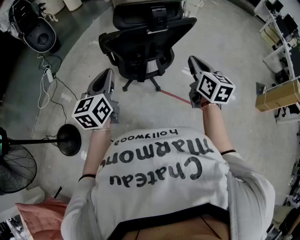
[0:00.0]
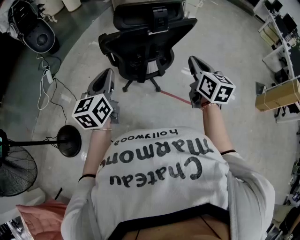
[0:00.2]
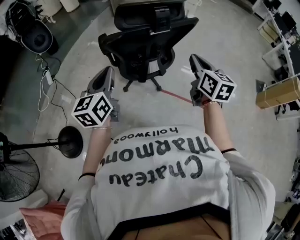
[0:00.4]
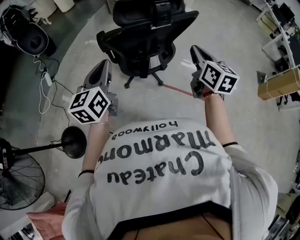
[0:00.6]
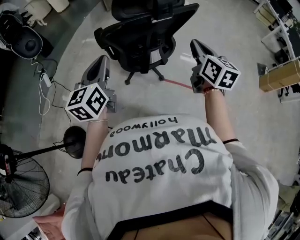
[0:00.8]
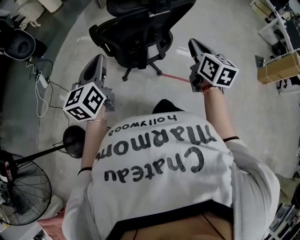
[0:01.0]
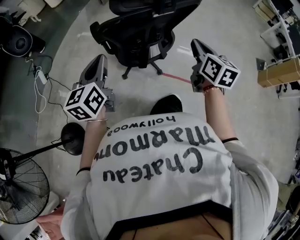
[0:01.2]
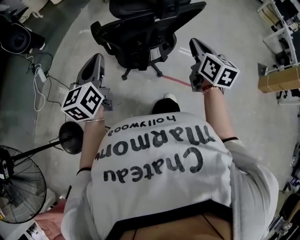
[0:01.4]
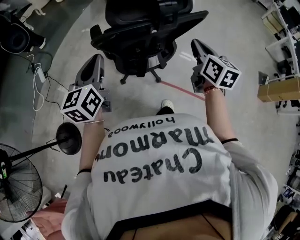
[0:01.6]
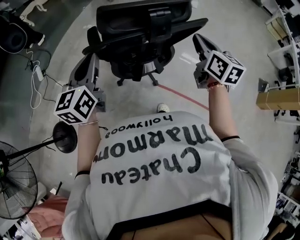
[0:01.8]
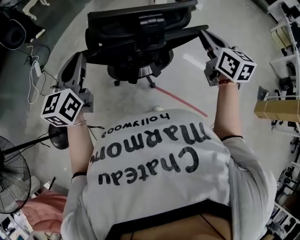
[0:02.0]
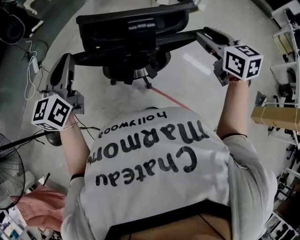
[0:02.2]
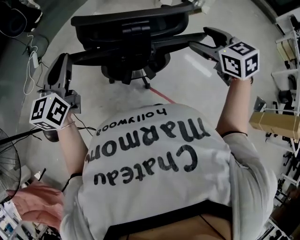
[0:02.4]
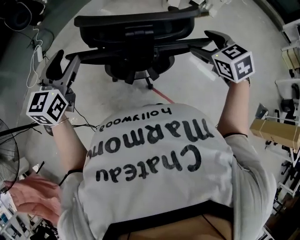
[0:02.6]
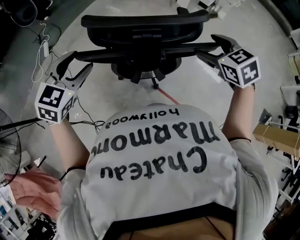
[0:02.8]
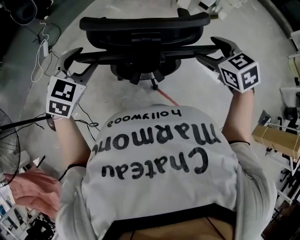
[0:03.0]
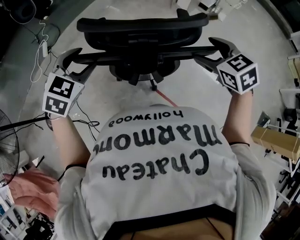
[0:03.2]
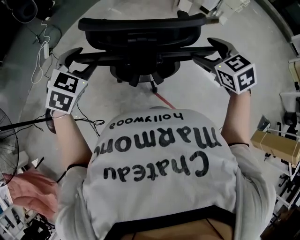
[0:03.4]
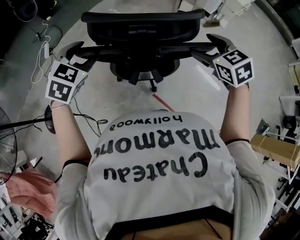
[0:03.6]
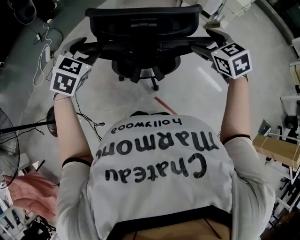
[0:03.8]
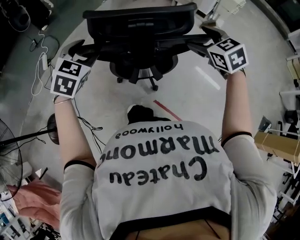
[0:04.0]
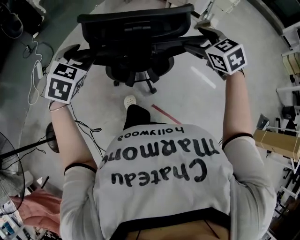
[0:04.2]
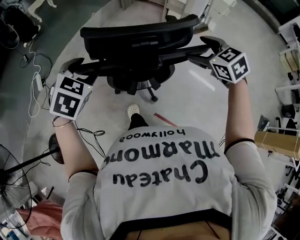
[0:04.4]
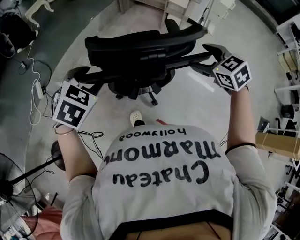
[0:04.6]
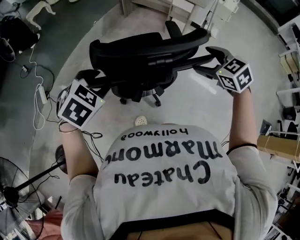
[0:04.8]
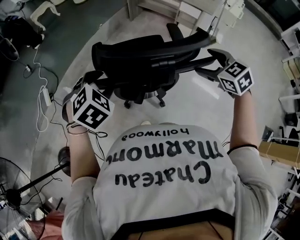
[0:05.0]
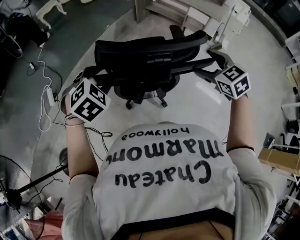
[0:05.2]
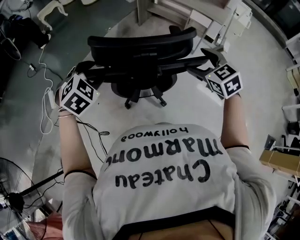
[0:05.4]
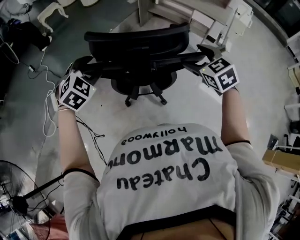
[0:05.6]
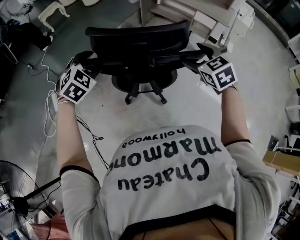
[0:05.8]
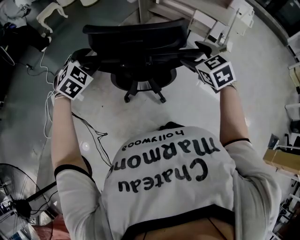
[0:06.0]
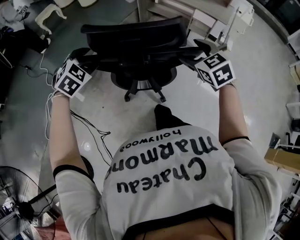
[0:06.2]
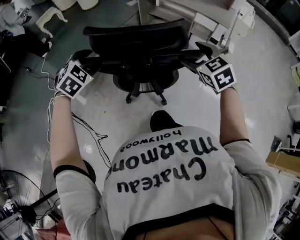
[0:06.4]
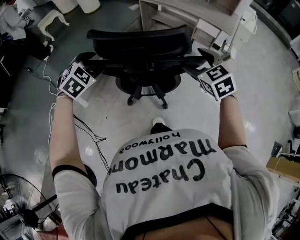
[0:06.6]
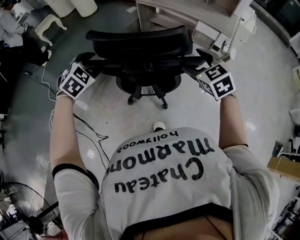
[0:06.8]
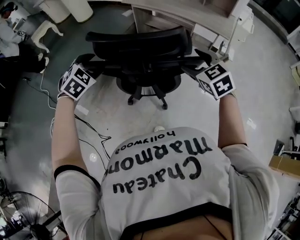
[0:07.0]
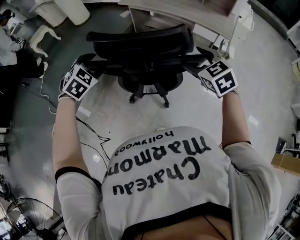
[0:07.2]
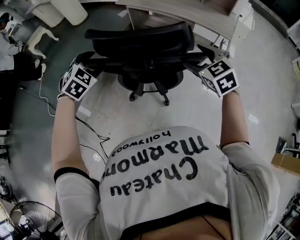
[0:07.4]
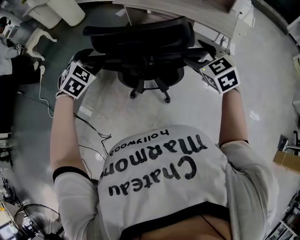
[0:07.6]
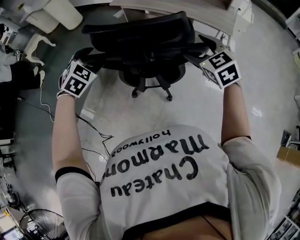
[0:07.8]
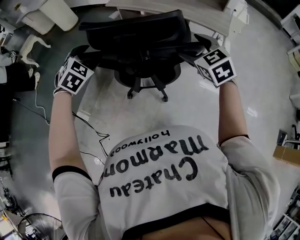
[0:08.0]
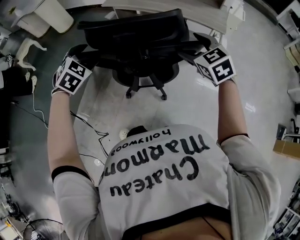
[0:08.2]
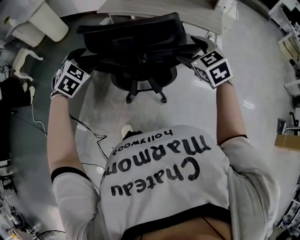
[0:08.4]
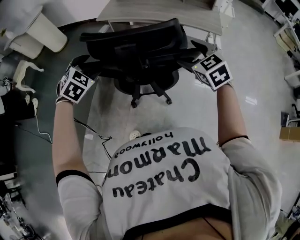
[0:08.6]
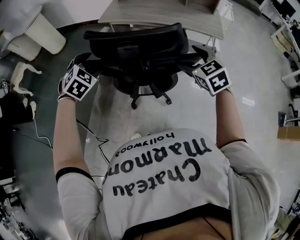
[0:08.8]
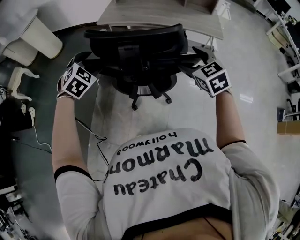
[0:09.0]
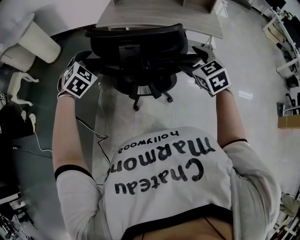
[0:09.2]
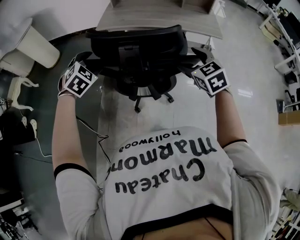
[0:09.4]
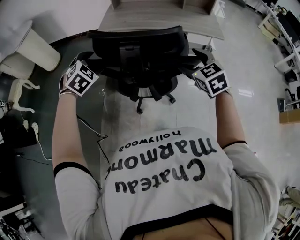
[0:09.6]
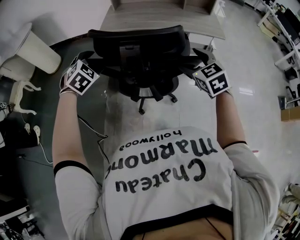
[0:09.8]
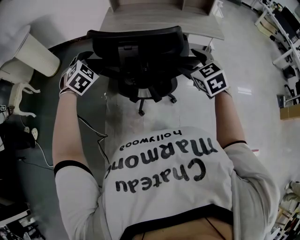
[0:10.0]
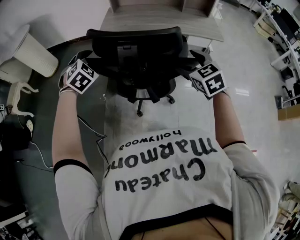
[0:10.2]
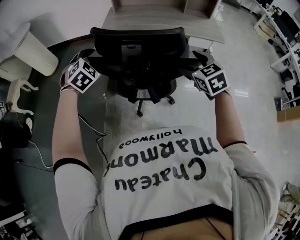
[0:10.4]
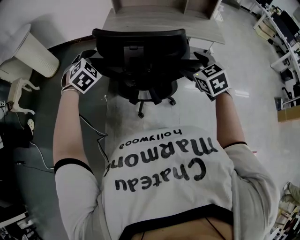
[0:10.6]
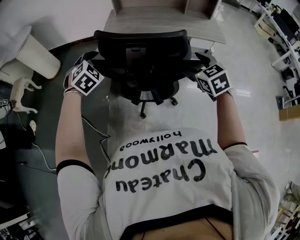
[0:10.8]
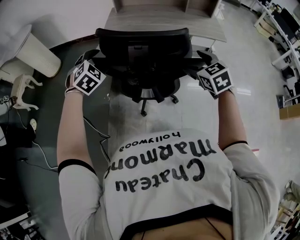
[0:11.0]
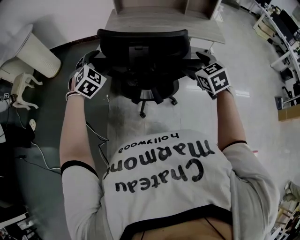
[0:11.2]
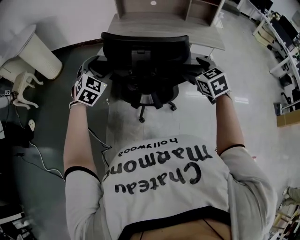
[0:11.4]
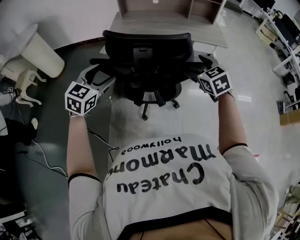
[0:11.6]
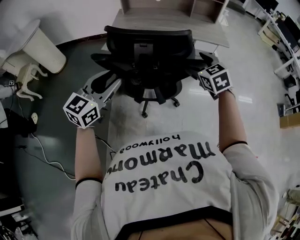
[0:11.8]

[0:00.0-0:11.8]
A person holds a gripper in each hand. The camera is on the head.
0:00.0 to 0:01.4: The right gripper heads forward, covering some 5 cm, while the left gripper moves forward and to the left, about 10 cm.
0:01.4 to 0:03.0: The two grippers go approximately 20 cm forward and to the right. The left gripper rolls clockwise, seen from behind, by roughly 40 degrees, and opens up. Meanwhile the right gripper rotates roughly 60 degrees, and opens up.
0:03.0 to 0:04.4: Both grippers travel together forward, some 15 cm.
0:04.4 to 0:06.0: Both grippers move forward and to the left, some 35 cm. The left gripper swivels approximately 20 degrees.
0:06.0 to 0:07.4: The grippers move only a little.
0:07.4 to 0:08.8: The left gripper travels forward by approximately 10 cm. The right gripper is displaced to the left by approximately 5 cm.
0:08.8 to 0:10.4: The left gripper travels forward and to the left by about 20 cm; the right gripper travels to the left and forward by roughly 15 cm.
0:10.4 to 0:11.8: The left gripper travels backward and upward by about 15 cm, tips its fingers upward by about 30 degrees, and closes.

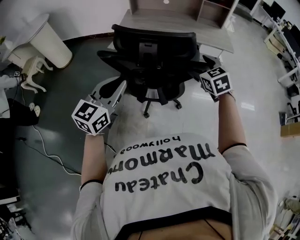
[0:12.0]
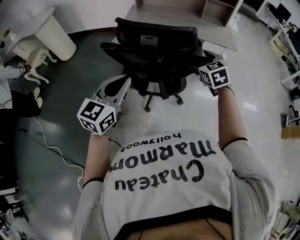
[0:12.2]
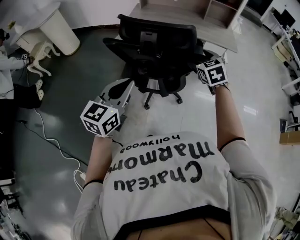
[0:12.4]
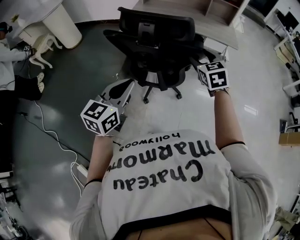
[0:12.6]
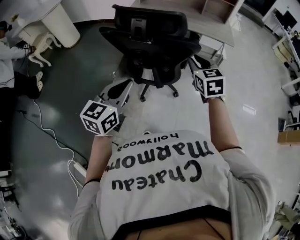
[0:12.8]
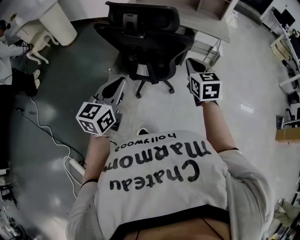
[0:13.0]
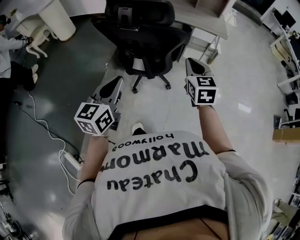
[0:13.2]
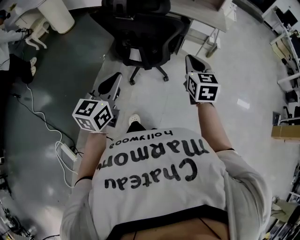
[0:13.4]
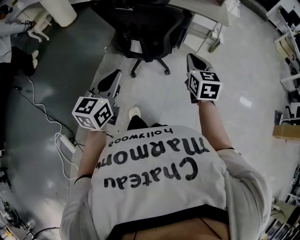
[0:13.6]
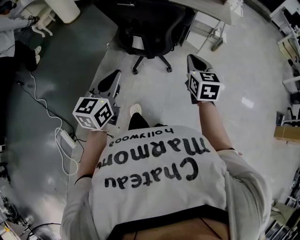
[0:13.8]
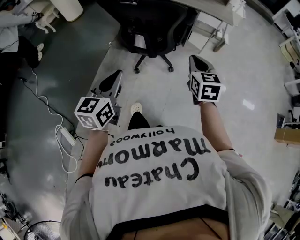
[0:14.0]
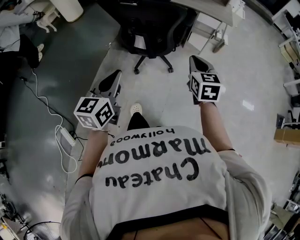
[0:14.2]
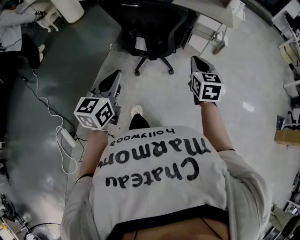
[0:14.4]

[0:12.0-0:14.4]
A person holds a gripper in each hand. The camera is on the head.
0:12.0 to 0:13.2: Both grippers travel together backward and to the right, approximately 20 cm. The right gripper closes up. Meanwhile the left gripper turns by roughly 20 degrees.
0:13.2 to 0:14.4: The left gripper shifts about 10 cm backward; the right gripper goes some 10 cm backward and to the right.

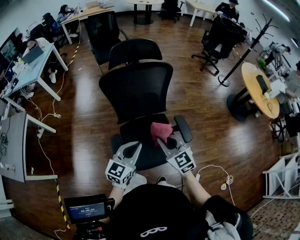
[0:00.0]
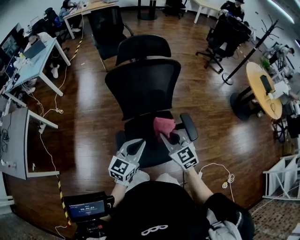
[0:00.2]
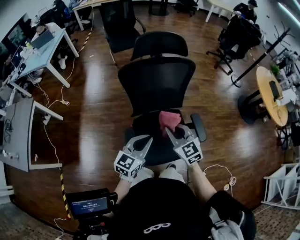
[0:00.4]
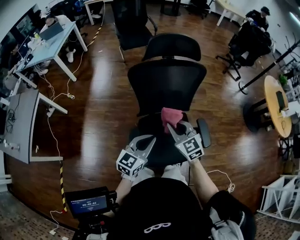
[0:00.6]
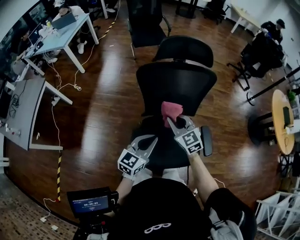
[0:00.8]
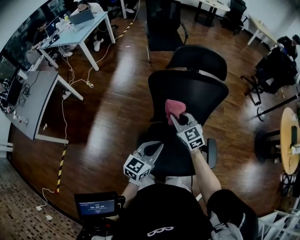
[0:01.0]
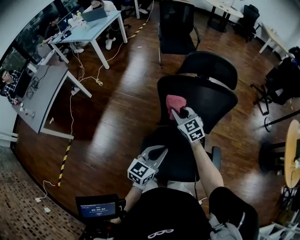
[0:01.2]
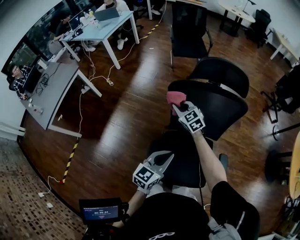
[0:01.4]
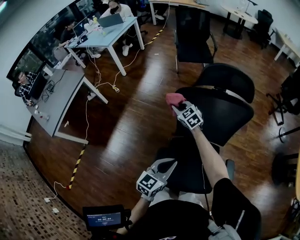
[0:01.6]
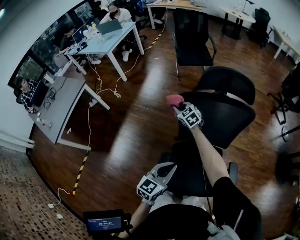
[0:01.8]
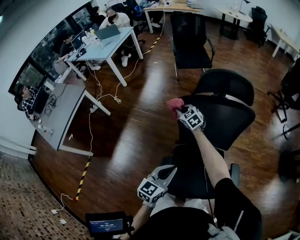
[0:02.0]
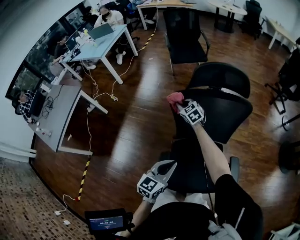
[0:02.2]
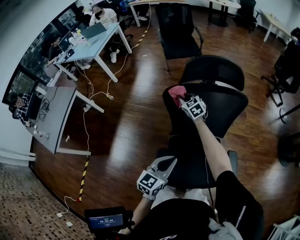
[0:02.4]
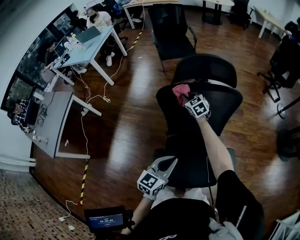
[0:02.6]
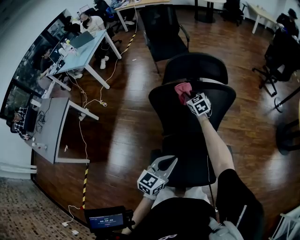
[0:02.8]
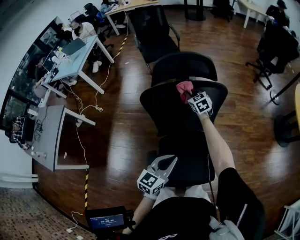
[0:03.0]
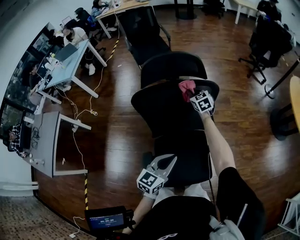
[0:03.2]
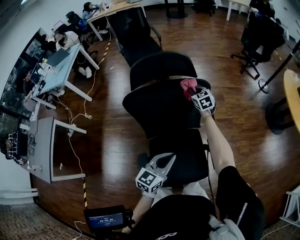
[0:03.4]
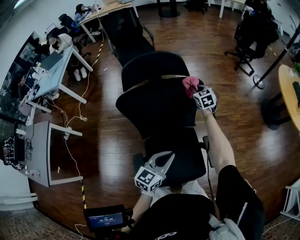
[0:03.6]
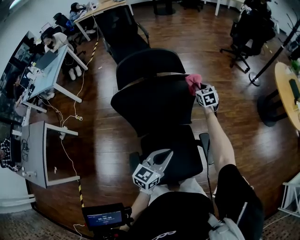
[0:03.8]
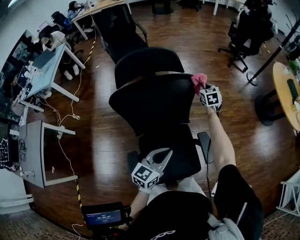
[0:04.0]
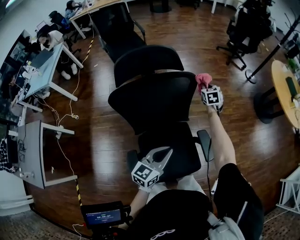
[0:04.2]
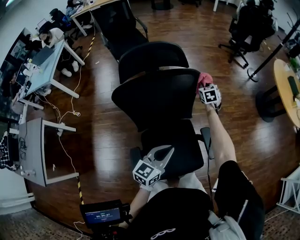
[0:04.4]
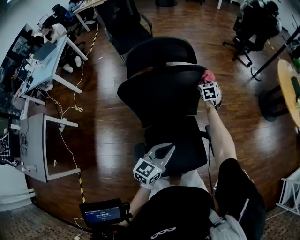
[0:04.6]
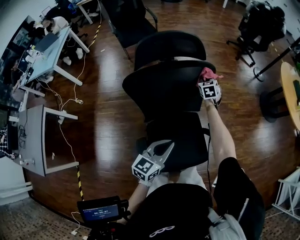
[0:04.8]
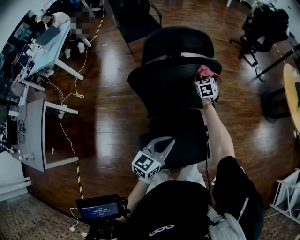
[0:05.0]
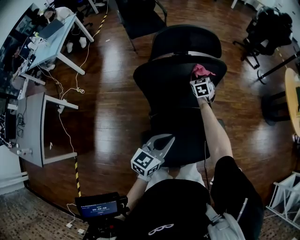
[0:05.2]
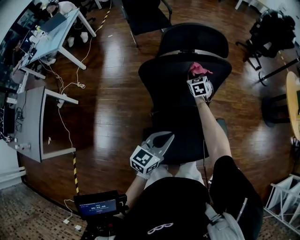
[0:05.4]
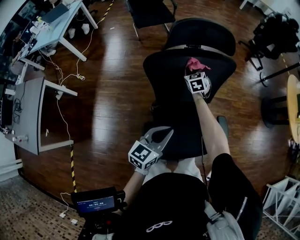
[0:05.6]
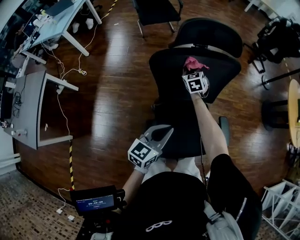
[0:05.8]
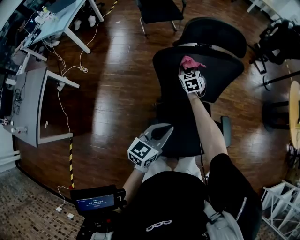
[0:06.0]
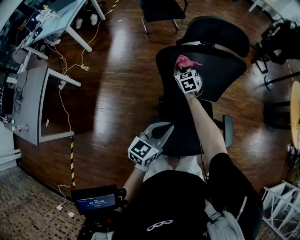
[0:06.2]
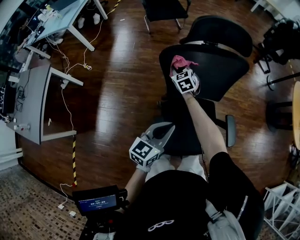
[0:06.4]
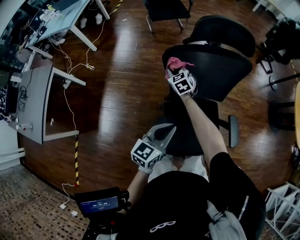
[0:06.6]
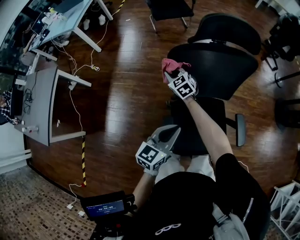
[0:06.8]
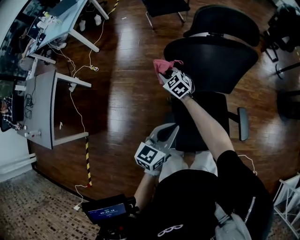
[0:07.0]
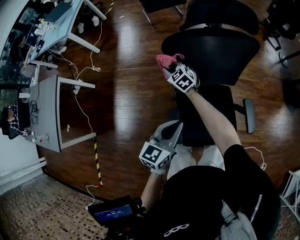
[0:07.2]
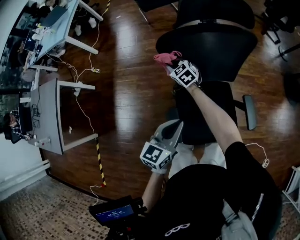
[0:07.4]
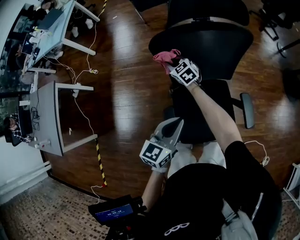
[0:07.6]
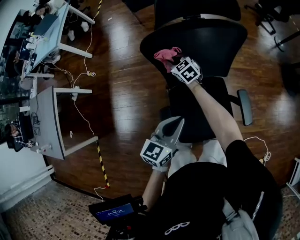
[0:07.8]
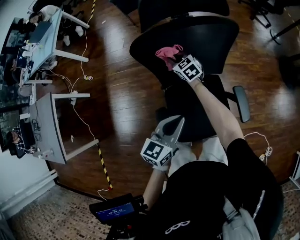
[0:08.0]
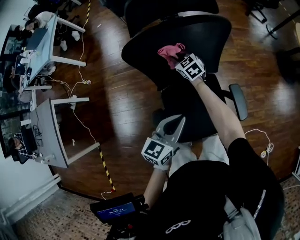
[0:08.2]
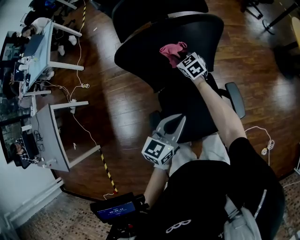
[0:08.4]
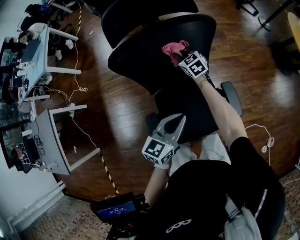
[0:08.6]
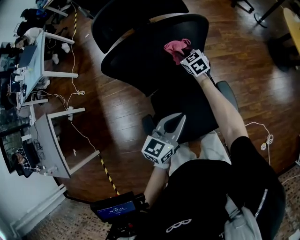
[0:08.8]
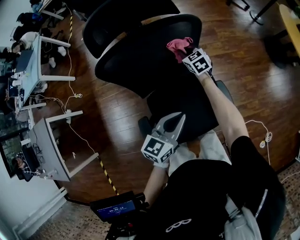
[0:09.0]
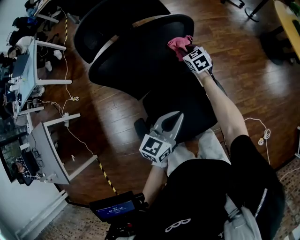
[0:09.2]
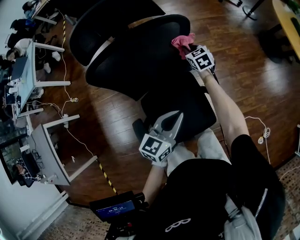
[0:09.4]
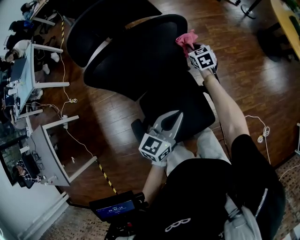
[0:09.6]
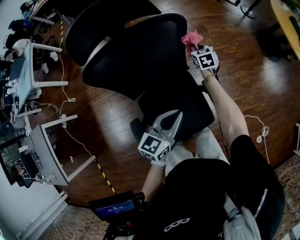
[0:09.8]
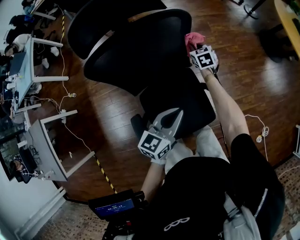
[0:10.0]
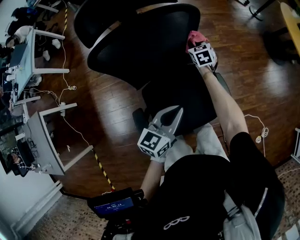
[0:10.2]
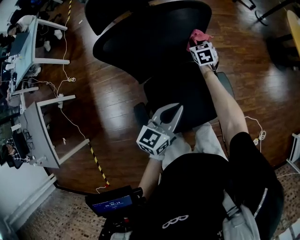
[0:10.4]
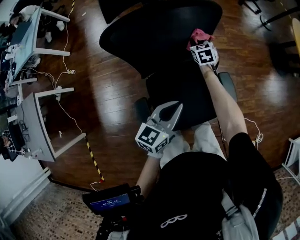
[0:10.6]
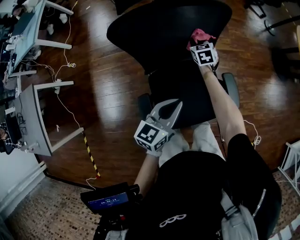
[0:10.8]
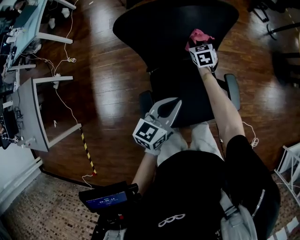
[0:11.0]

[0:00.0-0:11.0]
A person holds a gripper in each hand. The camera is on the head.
0:00.0 to 0:01.6: The right gripper goes some 50 cm forward and to the left, and turns by about 30 degrees, while the left gripper is displaced forward and to the left by approximately 15 cm, and turns by about 20 degrees.
0:01.6 to 0:03.2: The right gripper changes place by about 35 cm, and rotates about 30 degrees, while the left gripper changes place by some 15 cm.
0:03.2 to 0:04.8: The right gripper shifts some 10 cm to the right, and swivels roughly 20 degrees.
0:04.8 to 0:06.2: The left gripper moves to the left, some 15 cm. The right gripper moves to the left and backward, about 35 cm, and turns by approximately 20 degrees.
0:06.2 to 0:07.8: The right gripper moves about 15 cm to the left and comes back.
0:07.8 to 0:09.4: The left gripper shifts about 20 cm to the right; the right gripper is displaced to the right by about 35 cm, and changes its angle by about 30 degrees.
0:09.4 to 0:11.0: Both grippers move to the left and backward, some 15 cm.
